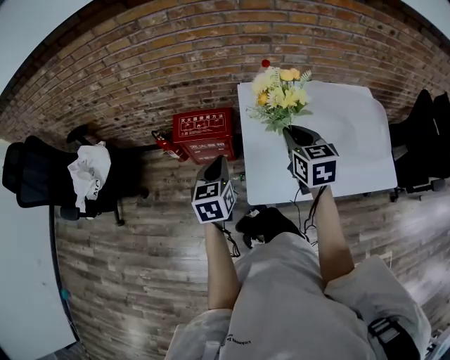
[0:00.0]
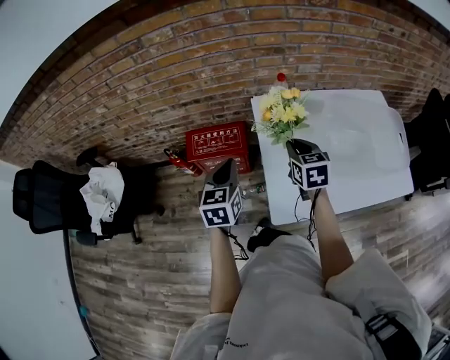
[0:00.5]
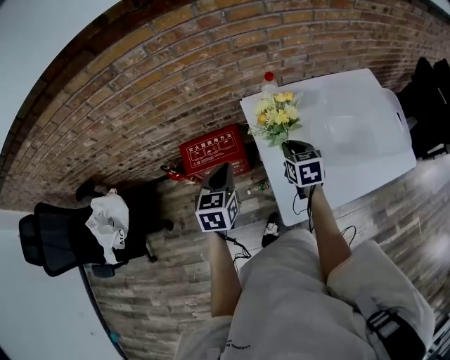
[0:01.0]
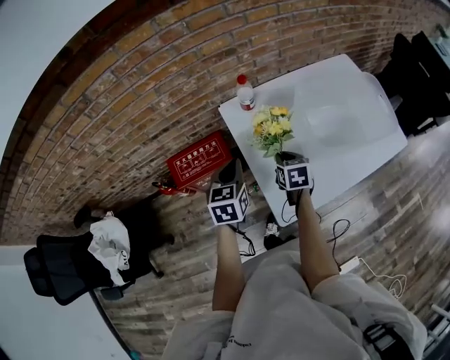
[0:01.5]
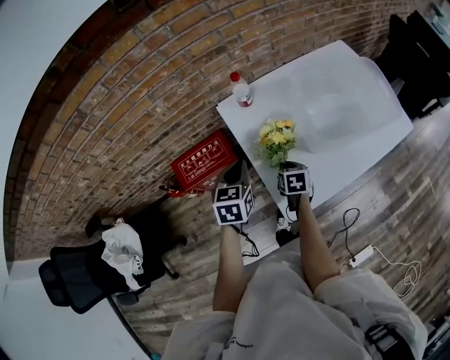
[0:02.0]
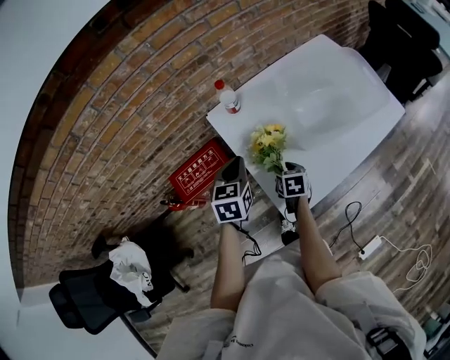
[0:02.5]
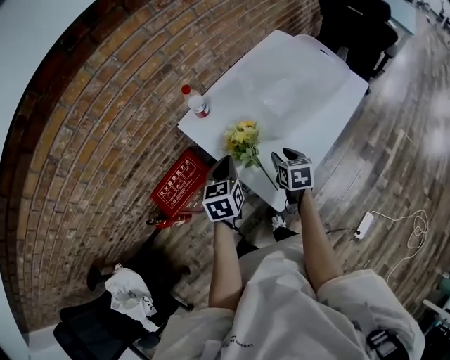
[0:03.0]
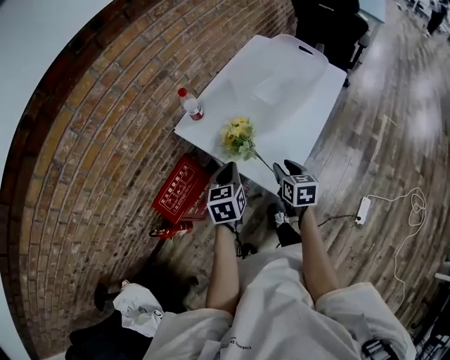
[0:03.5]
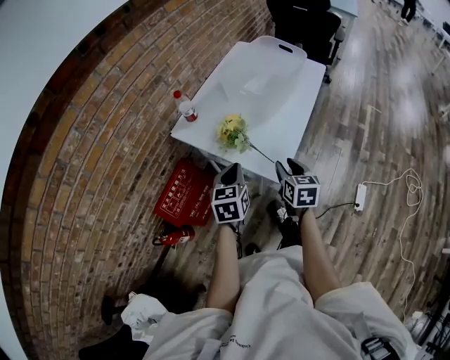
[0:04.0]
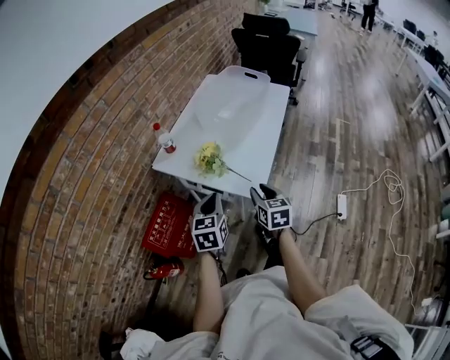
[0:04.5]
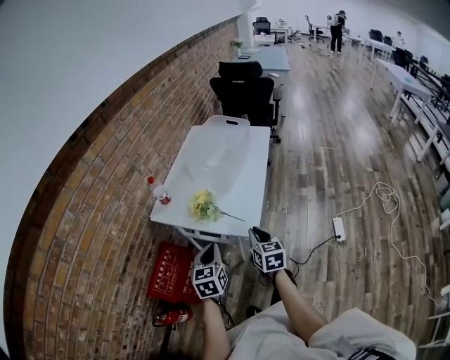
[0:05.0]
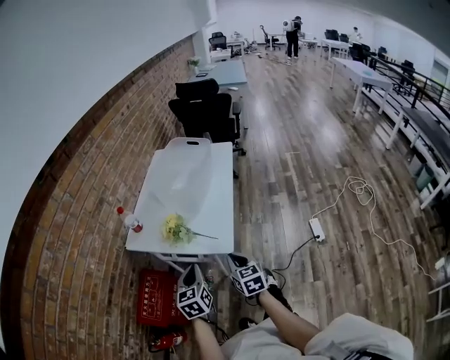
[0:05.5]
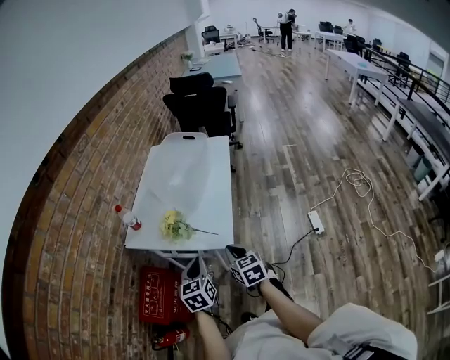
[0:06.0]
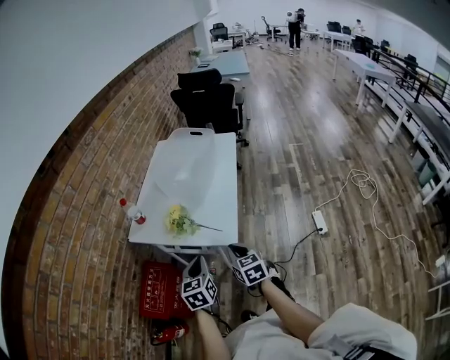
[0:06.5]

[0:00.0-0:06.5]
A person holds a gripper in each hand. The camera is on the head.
0:00.0 to 0:02.0: The right gripper shifts about 25 cm downward, and swivels some 40 degrees; the left gripper is displaced forward by approximately 10 cm, and changes its angle by approximately 30 degrees.
0:02.0 to 0:04.5: The left gripper changes place by about 15 cm, and changes its angle by some 40 degrees; the right gripper ends up approximately 25 cm from where it was, and changes its angle by approximately 50 degrees.
0:04.5 to 0:06.5: The right gripper travels backward by some 5 cm, and closes its fingers.

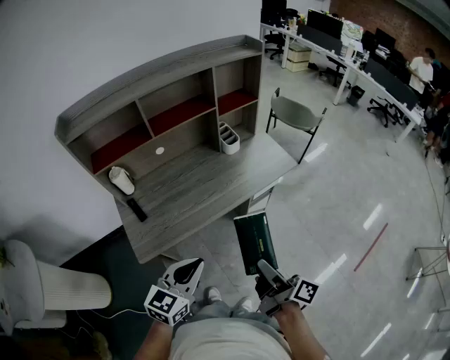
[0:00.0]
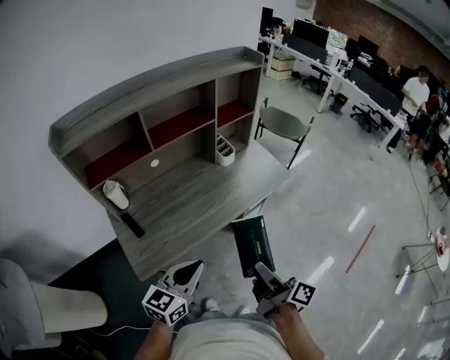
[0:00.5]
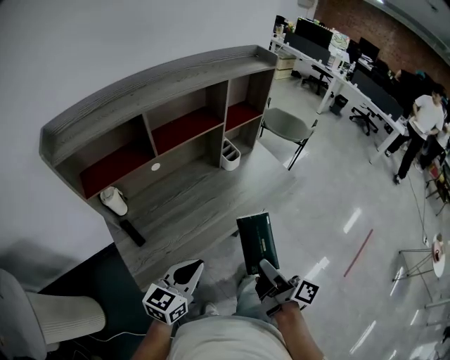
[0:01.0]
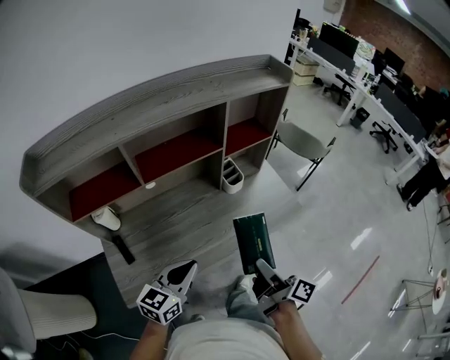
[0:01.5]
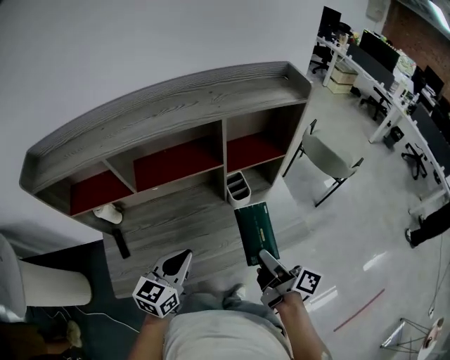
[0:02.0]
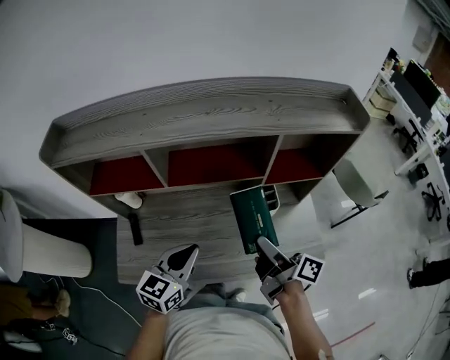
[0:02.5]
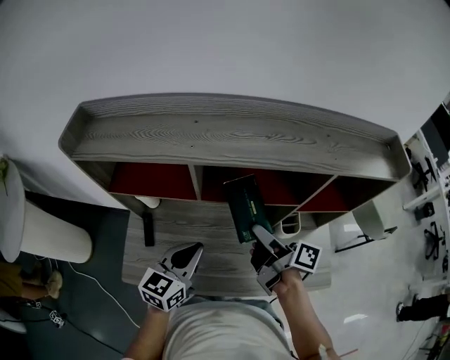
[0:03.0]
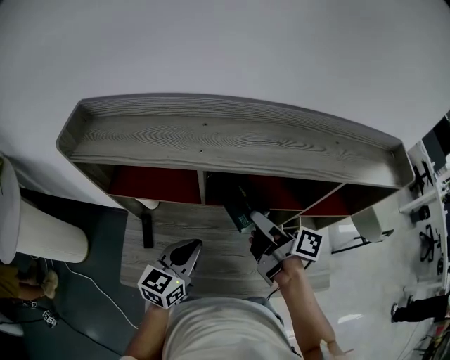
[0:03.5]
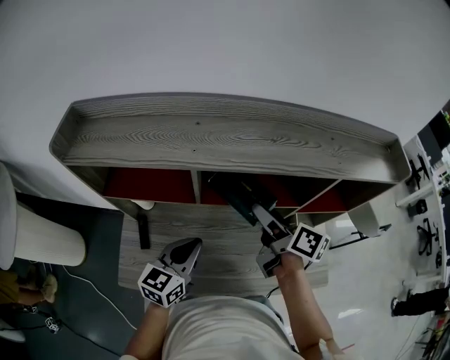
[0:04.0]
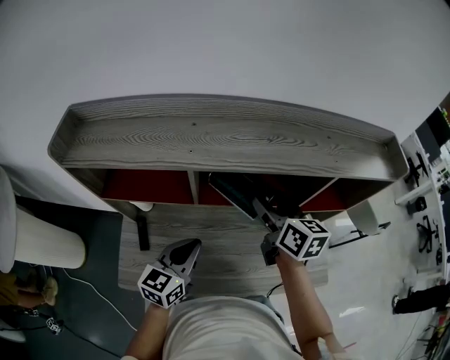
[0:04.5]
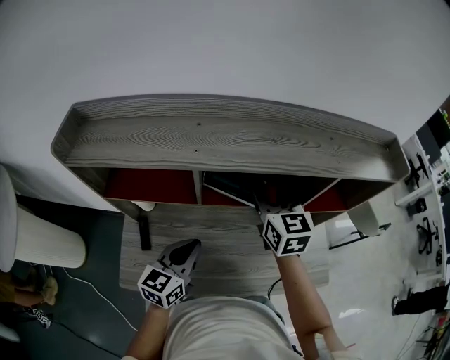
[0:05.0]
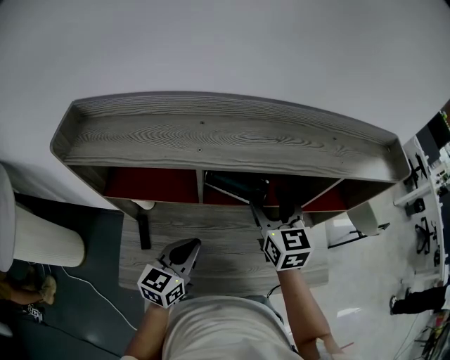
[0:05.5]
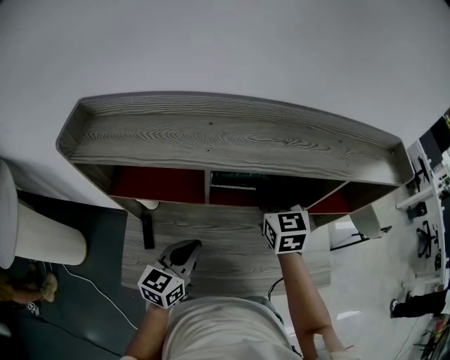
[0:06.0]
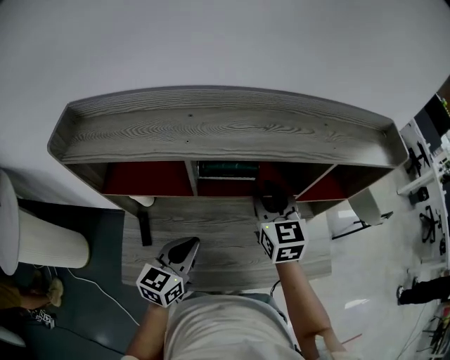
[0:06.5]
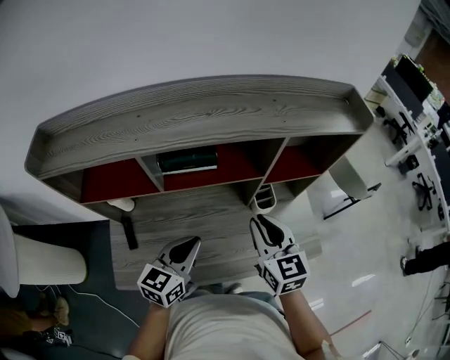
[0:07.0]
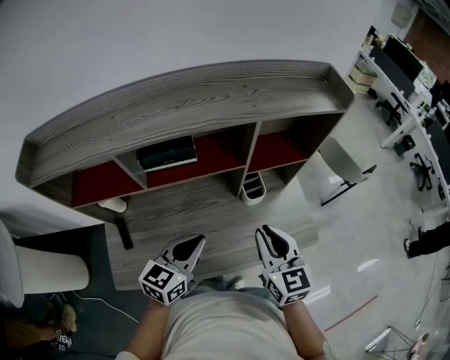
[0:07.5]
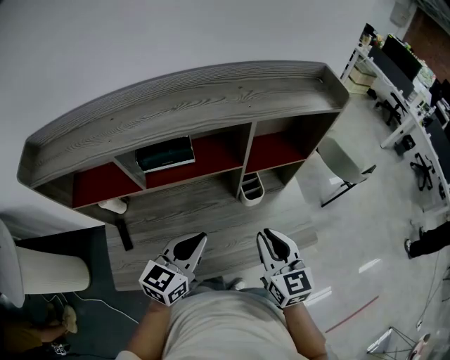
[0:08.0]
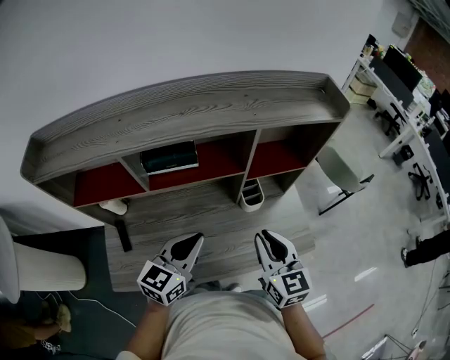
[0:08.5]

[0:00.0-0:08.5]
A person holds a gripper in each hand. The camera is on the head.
0:00.0 to 0:02.0: The grippers both shift forward by roughly 35 cm. The left gripper rotates about 20 degrees.
0:02.0 to 0:04.0: The right gripper moves forward and to the left, some 35 cm, and turns by some 30 degrees. Meanwhile the left gripper is displaced to the left and forward by about 20 cm.
0:04.0 to 0:06.5: The right gripper rolls counterclockwise, seen from behind, by about 60 degrees, and closes.
0:06.5 to 0:08.5: The right gripper moves to the right and backward, some 25 cm; the left gripper is displaced to the right by roughly 15 cm.

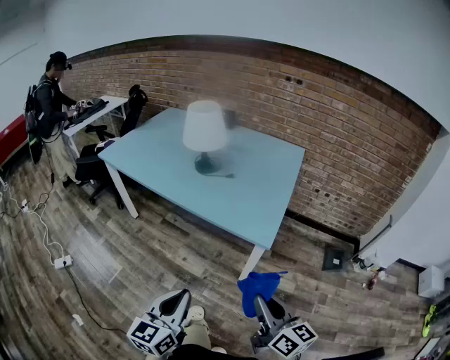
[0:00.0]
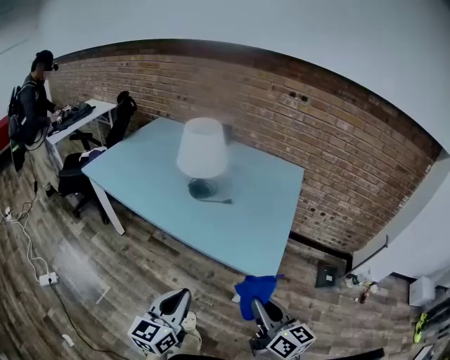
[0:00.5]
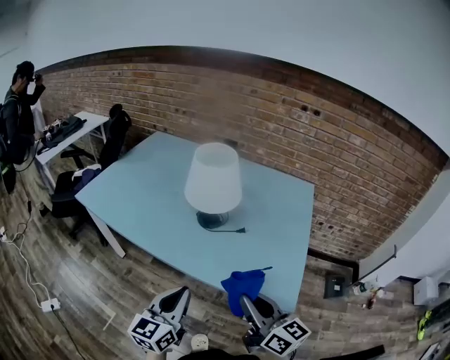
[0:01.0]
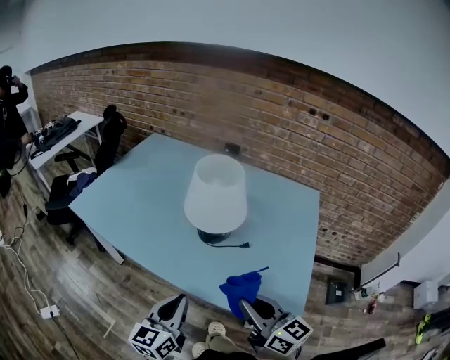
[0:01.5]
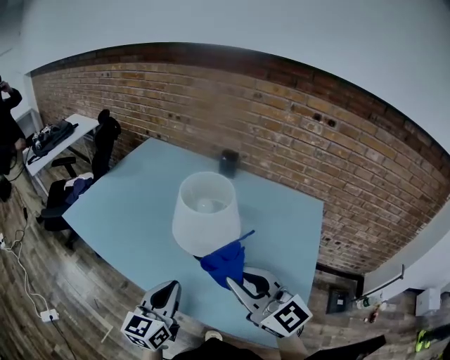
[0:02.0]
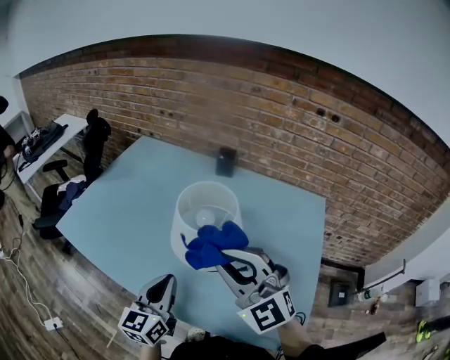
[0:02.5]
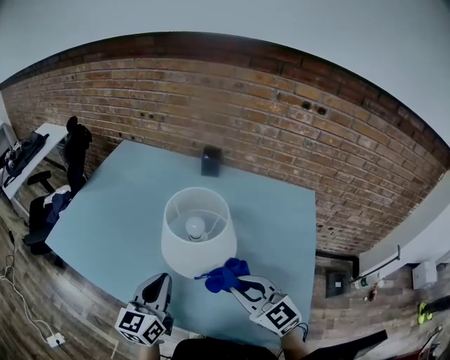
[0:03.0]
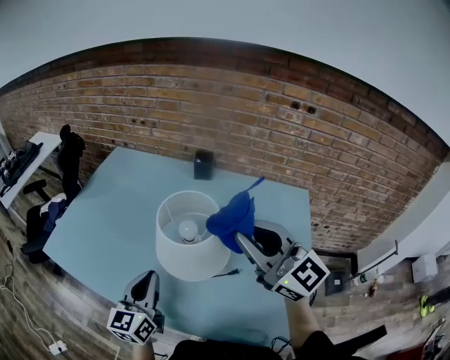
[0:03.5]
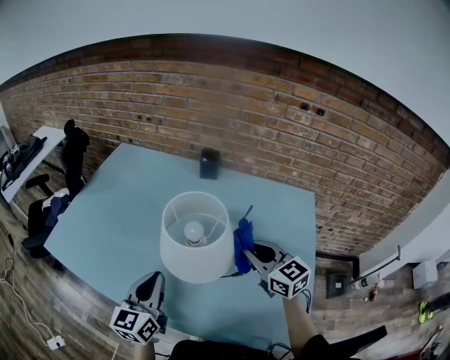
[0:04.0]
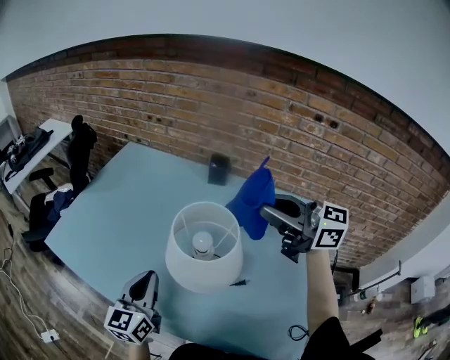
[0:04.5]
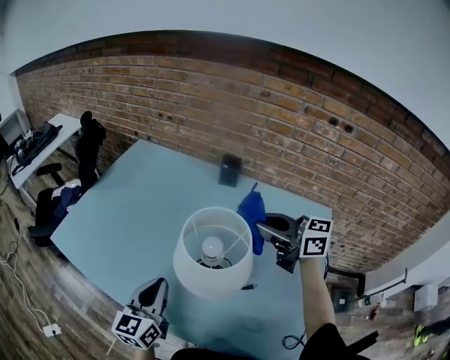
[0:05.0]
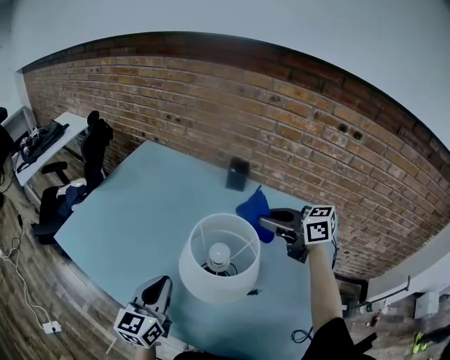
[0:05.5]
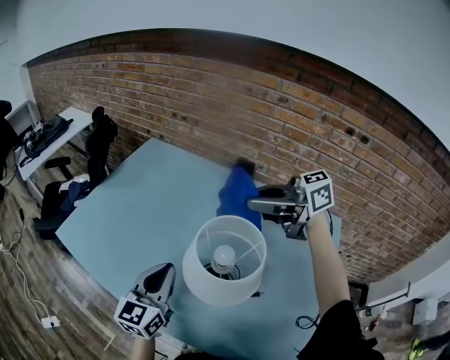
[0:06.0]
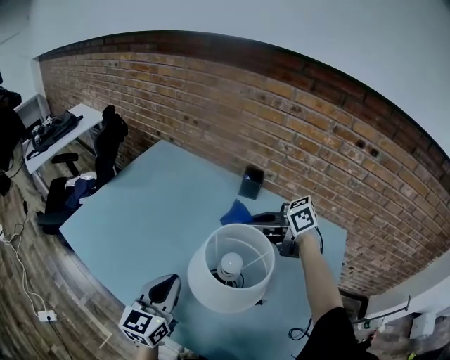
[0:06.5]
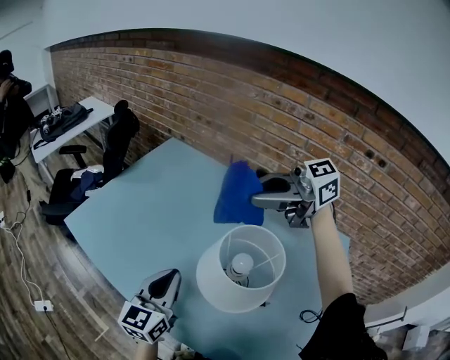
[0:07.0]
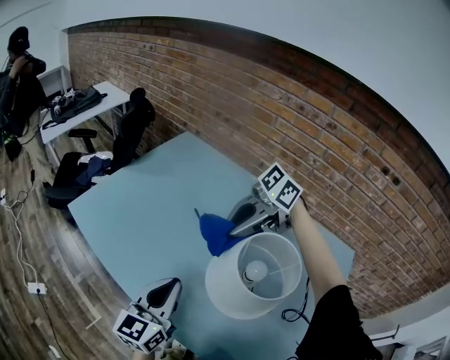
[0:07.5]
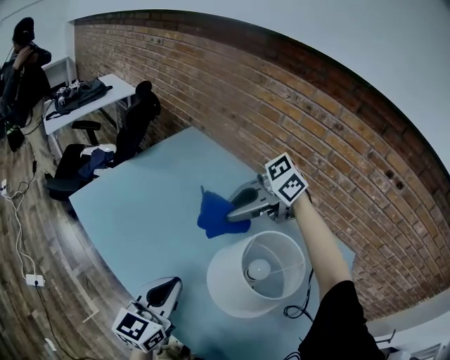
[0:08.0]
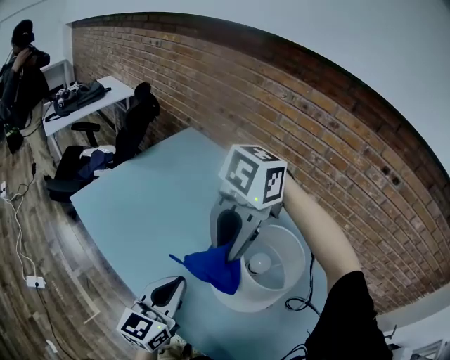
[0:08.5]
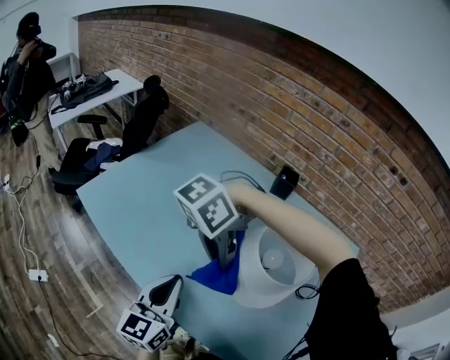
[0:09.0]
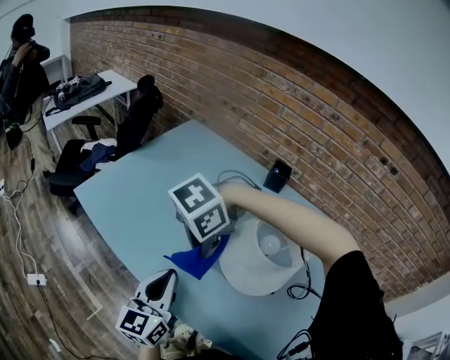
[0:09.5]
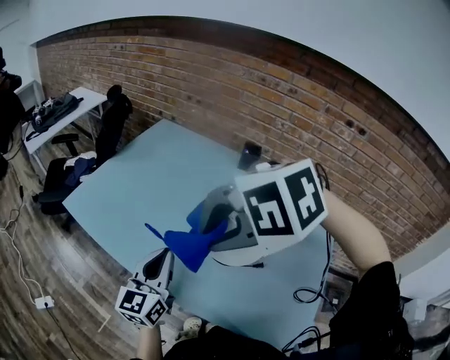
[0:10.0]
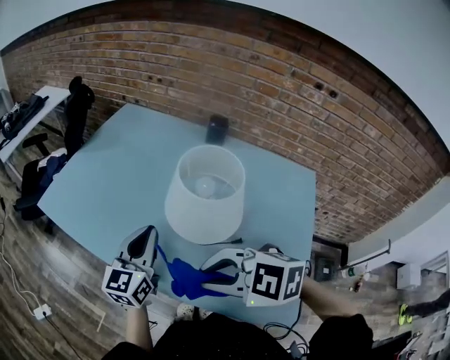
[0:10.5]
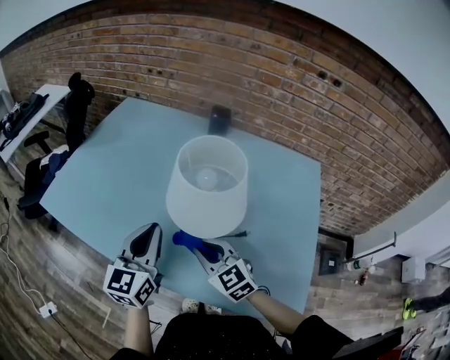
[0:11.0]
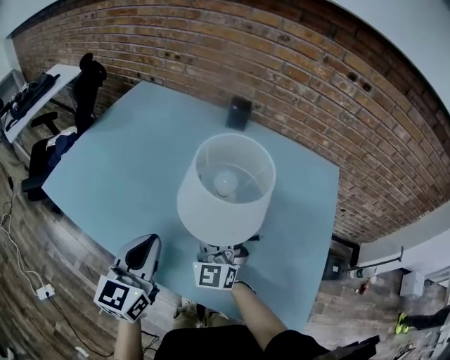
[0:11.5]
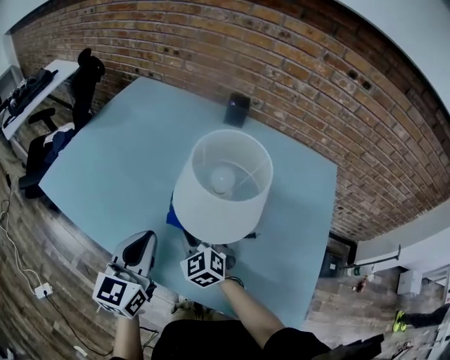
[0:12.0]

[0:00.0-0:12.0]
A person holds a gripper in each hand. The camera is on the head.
0:00.0 to 0:02.0: Both grippers are carried forward, some 50 cm. The right gripper changes its angle by about 40 degrees.
0:02.0 to 0:04.0: The left gripper heads forward, covering some 15 cm. The right gripper moves up and down over approximately 20 cm, changing direction 2 times, and changes its angle by some 20 degrees.
0:04.0 to 0:06.0: The left gripper moves some 5 cm. Meanwhile the right gripper moves up and down over some 20 cm, changing direction 2 times, and swivels approximately 60 degrees.
0:06.0 to 0:08.0: The left gripper moves about 5 cm, while the right gripper goes up and down, some 15 cm each way, reversing 2 times, and turns by about 50 degrees.
0:08.0 to 0:10.0: The right gripper goes up and down, approximately 15 cm each way, reversing 2 times, and tips its fingers downward by approximately 40 degrees.
0:10.0 to 0:12.0: The right gripper shifts about 30 cm downward, and tilts its fingers some 30 degrees upward, while the left gripper ends up some 5 cm from where it was.
